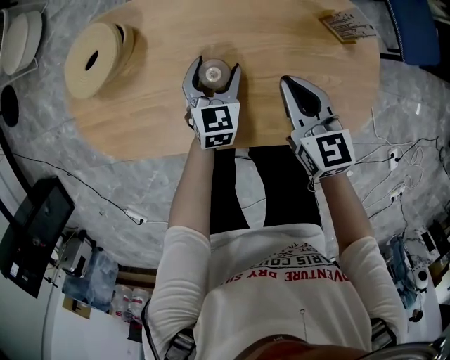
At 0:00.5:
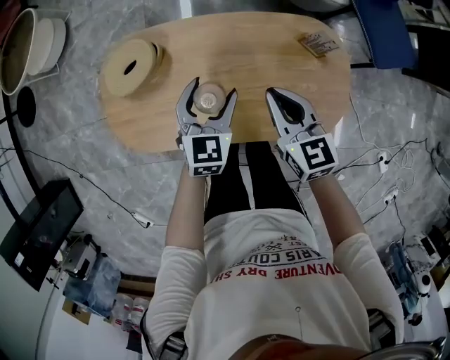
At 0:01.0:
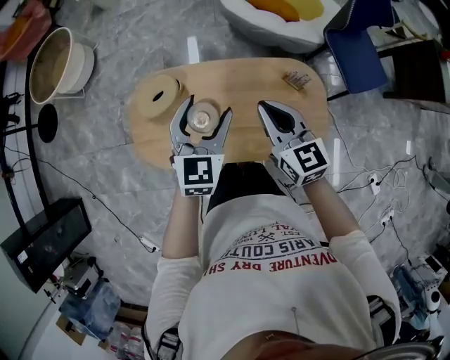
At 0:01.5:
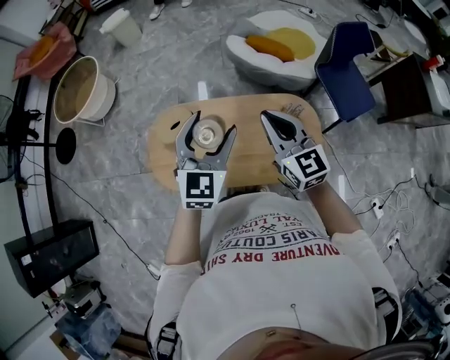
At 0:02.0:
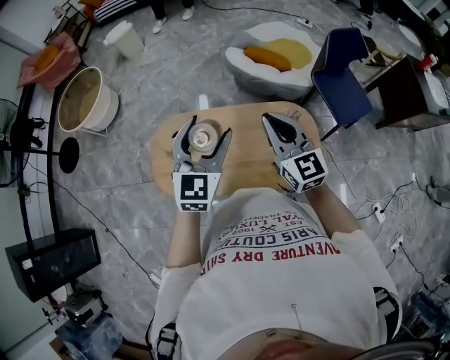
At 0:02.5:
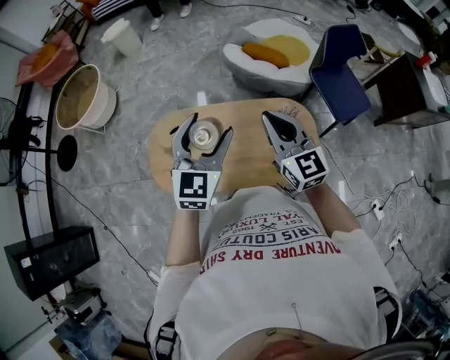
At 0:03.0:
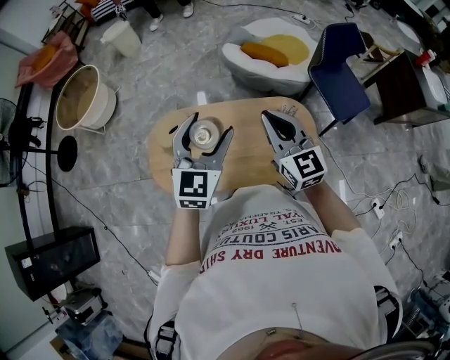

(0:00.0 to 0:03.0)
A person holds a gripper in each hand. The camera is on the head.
0:00.0 - 0:01.5: Both grippers move upward, about 50 cm. The left gripper turns by roughly 30 degrees, while the right gripper swivels some 30 degrees.
0:01.5 - 0:03.0: The grippers make only small movements.

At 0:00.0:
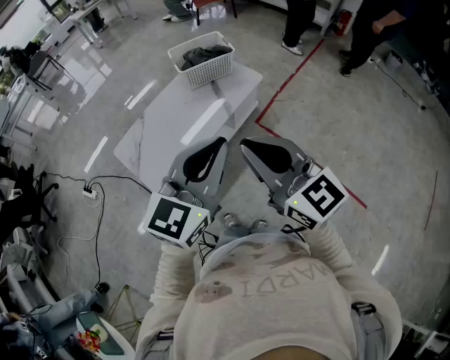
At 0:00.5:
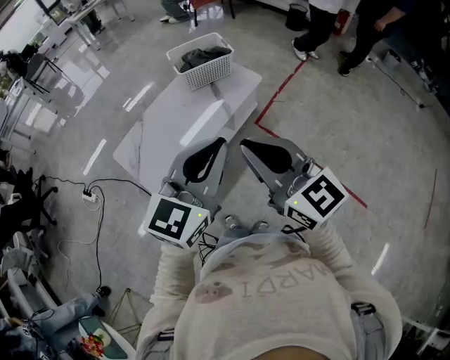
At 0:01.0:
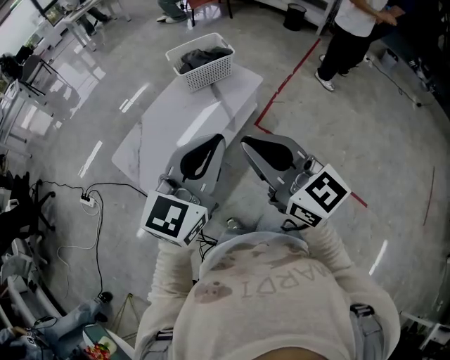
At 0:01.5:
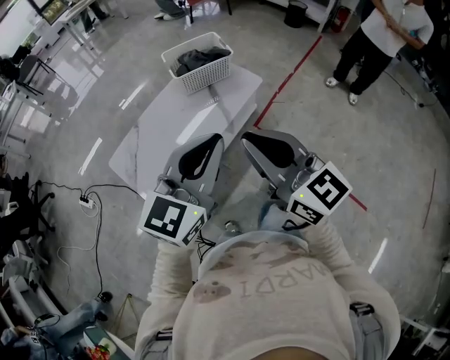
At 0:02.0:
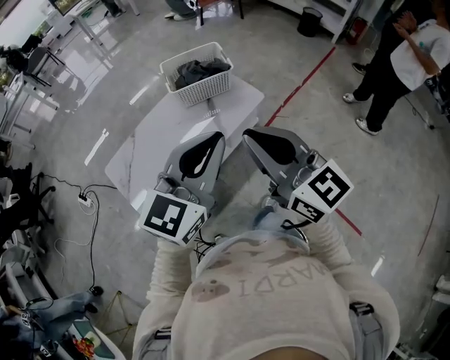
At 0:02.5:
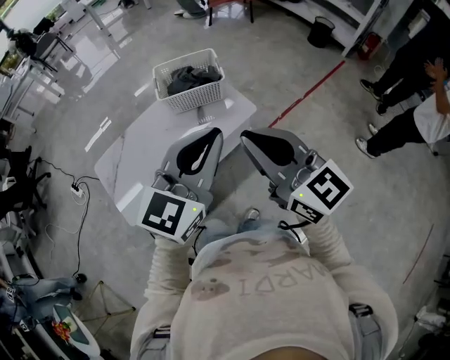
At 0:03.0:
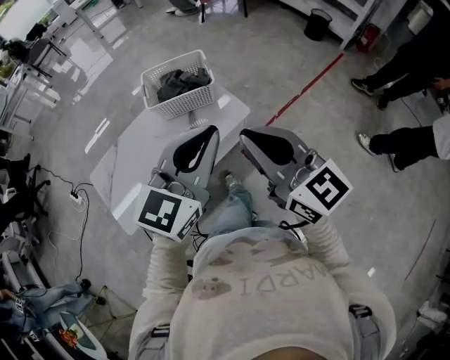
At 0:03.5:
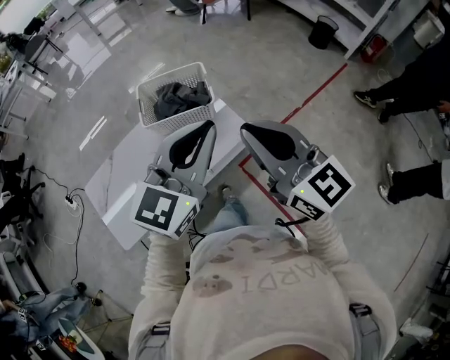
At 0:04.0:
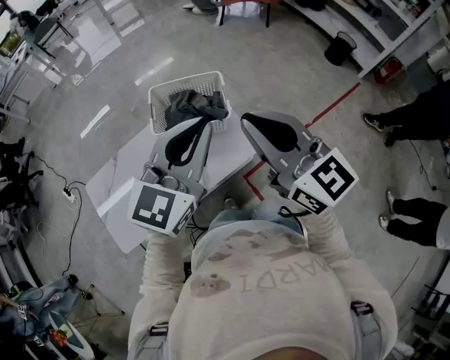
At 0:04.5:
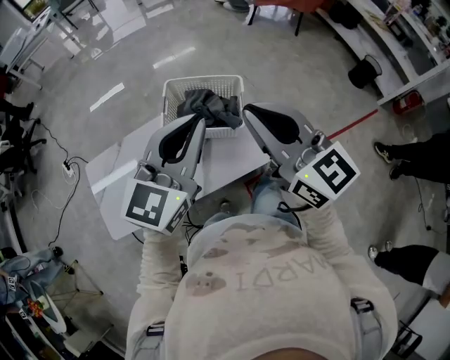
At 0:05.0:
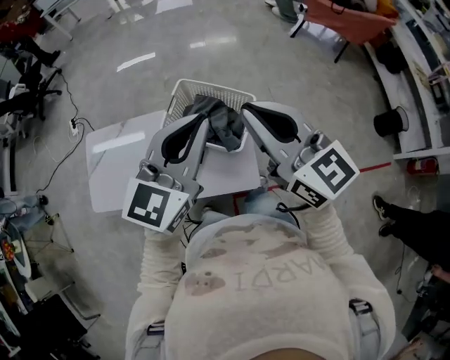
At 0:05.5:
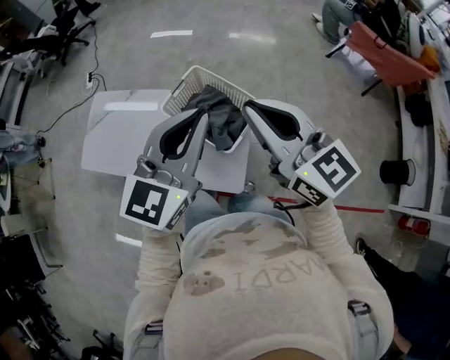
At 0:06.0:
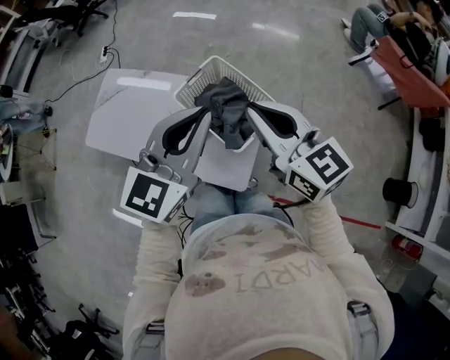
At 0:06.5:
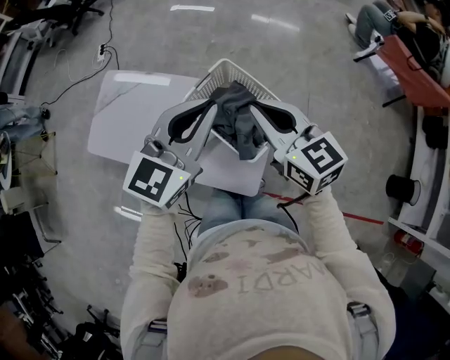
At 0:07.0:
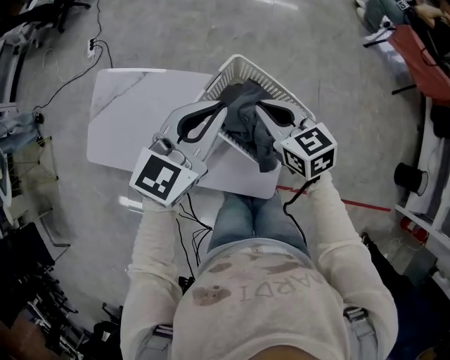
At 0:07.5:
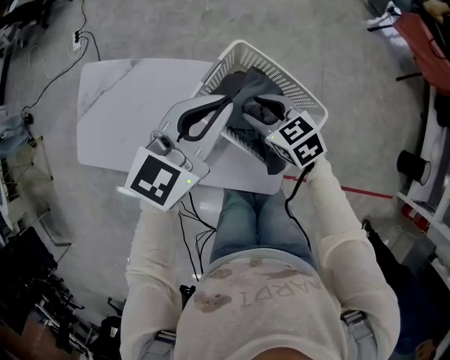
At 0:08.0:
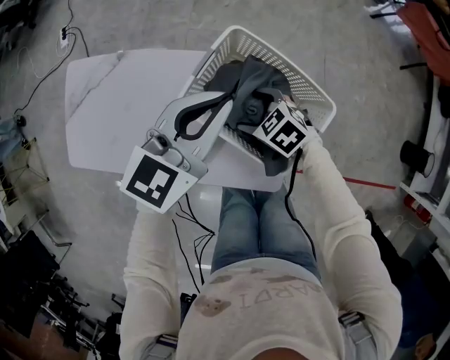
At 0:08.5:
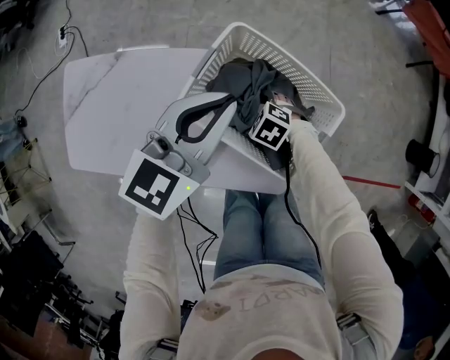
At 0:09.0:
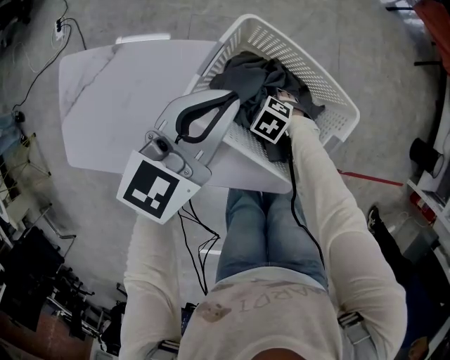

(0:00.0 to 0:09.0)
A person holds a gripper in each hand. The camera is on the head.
0:00.0 - 0:02.0: The left gripper goes about 20 cm forward. Meanwhile the right gripper shifts some 20 cm forward and to the right.
0:02.0 - 0:04.5: Both grippers travel together forward, approximately 40 cm. The left gripper swivels about 30 degrees, while the right gripper swivels about 20 degrees.
0:04.5 - 0:07.0: The left gripper changes place by roughly 25 cm, and turns by approximately 30 degrees. Meanwhile the right gripper changes place by about 40 cm, and tips its fingers downward by roughly 30 degrees.
0:07.0 - 0:09.0: The right gripper shifts about 35 cm downward, angles its fingers downward, by some 40 degrees, and opens, while the left gripper heads downward, covering about 15 cm.

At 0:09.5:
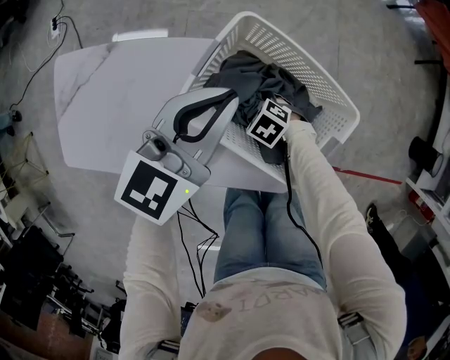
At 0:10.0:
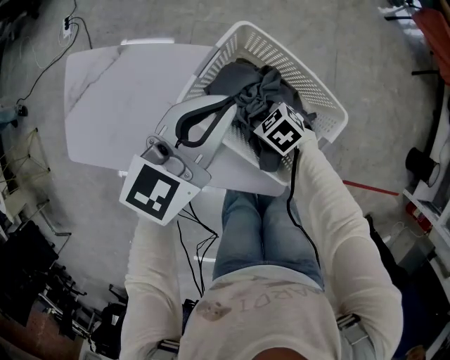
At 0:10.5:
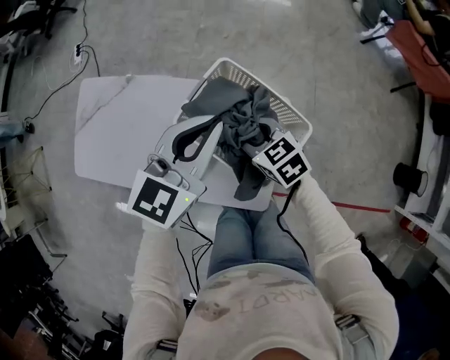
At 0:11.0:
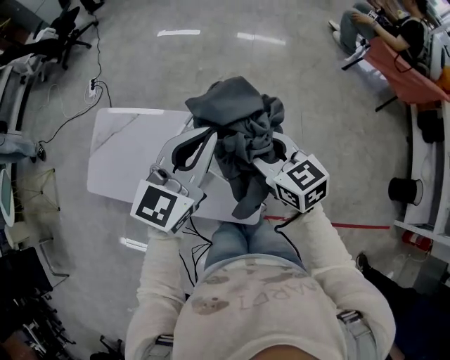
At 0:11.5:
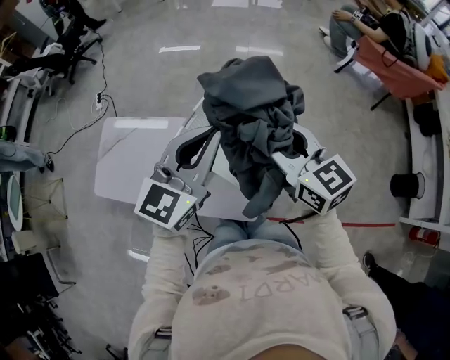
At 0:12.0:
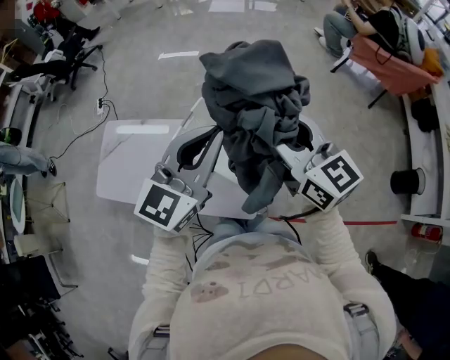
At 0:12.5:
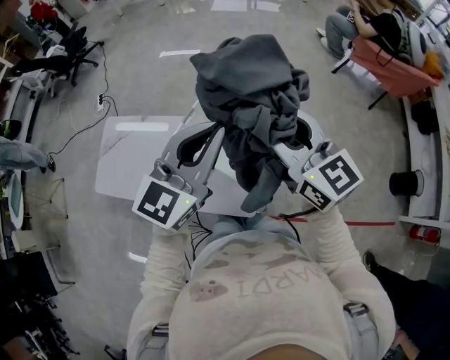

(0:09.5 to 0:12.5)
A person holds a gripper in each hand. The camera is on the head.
0:09.5 - 0:11.0: The left gripper travels upward by approximately 20 cm. The right gripper travels upward by some 40 cm, and tips its fingers upward by roughly 50 degrees.
0:11.0 - 0:12.5: The left gripper heads upward, backward and to the right, covering about 15 cm, while the right gripper shifts approximately 20 cm upward and to the right, and changes its angle by about 30 degrees.

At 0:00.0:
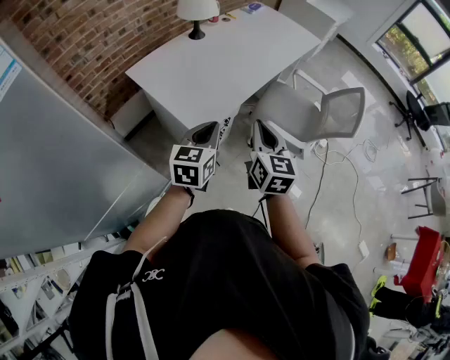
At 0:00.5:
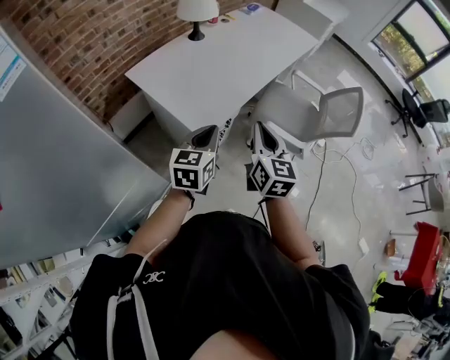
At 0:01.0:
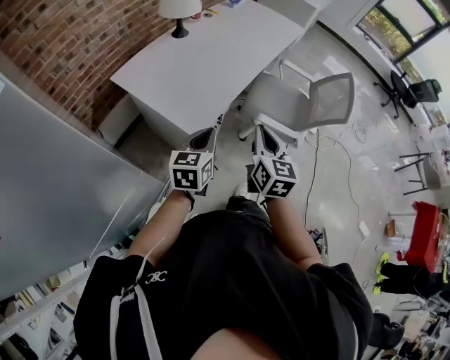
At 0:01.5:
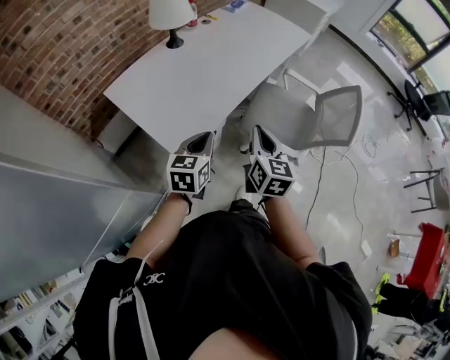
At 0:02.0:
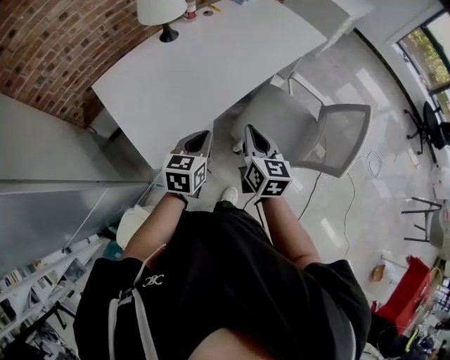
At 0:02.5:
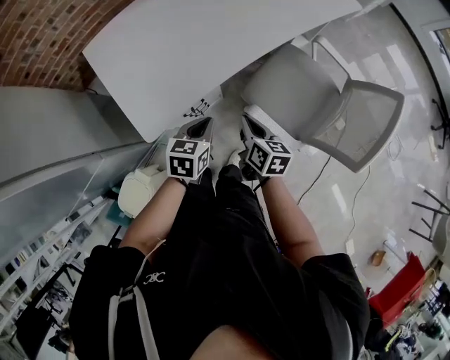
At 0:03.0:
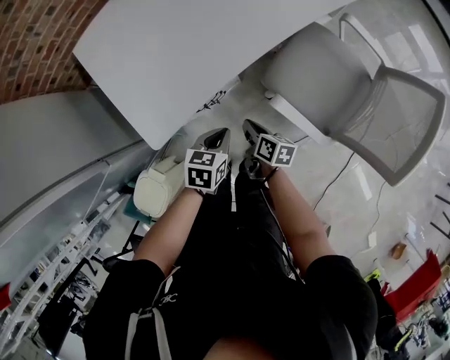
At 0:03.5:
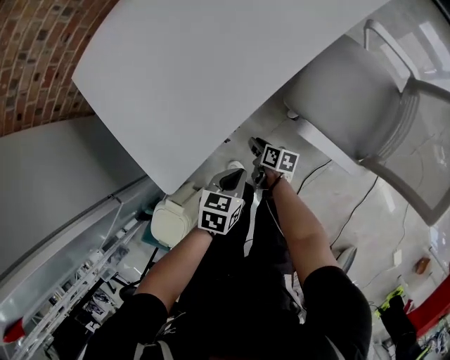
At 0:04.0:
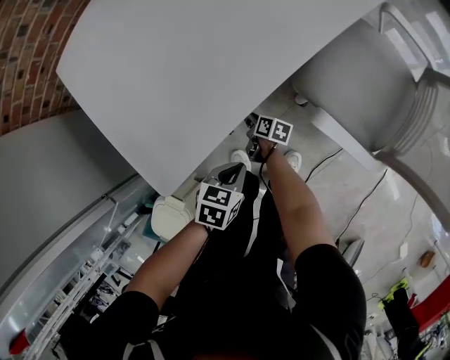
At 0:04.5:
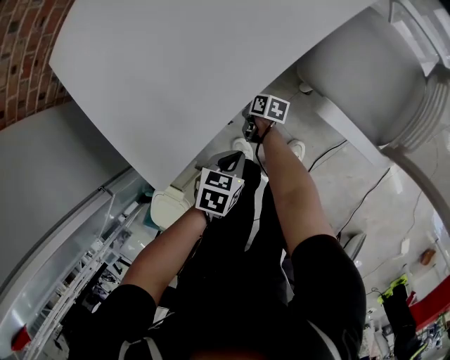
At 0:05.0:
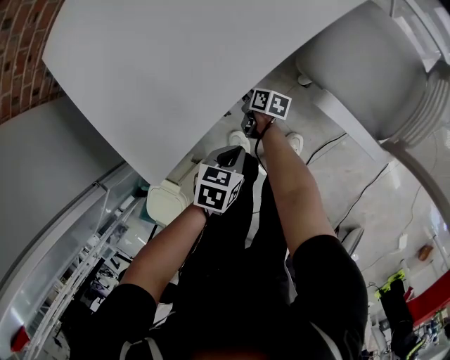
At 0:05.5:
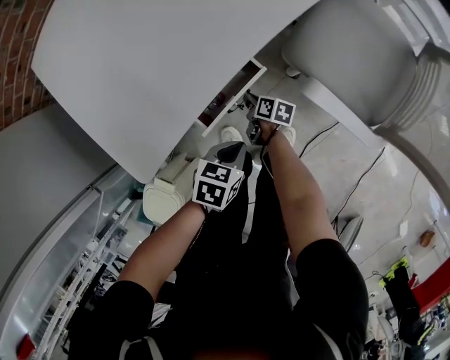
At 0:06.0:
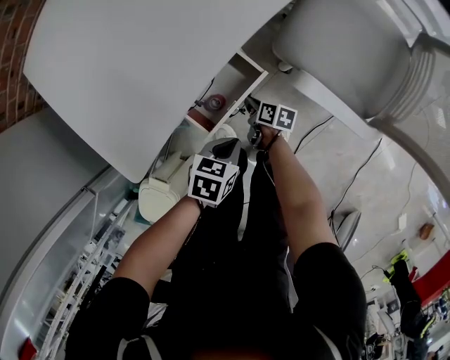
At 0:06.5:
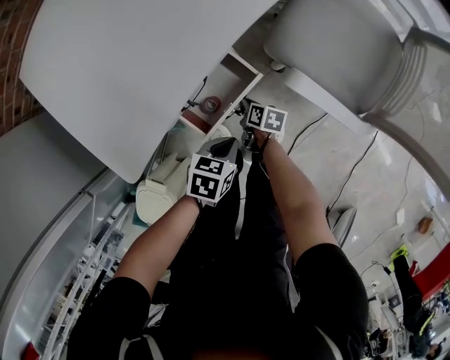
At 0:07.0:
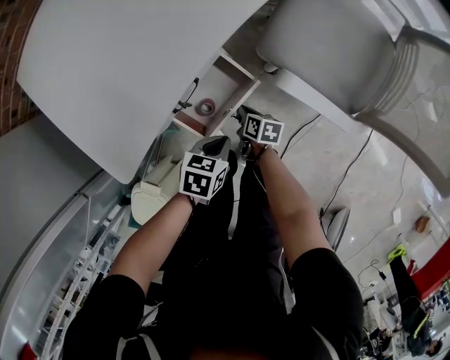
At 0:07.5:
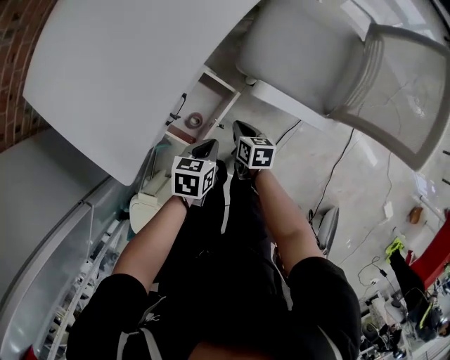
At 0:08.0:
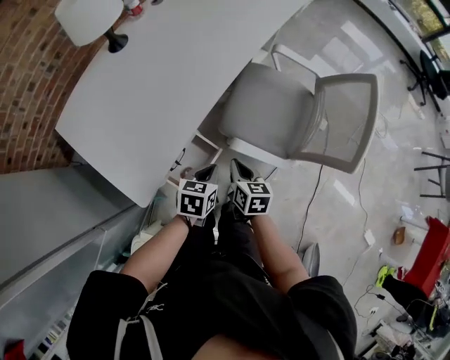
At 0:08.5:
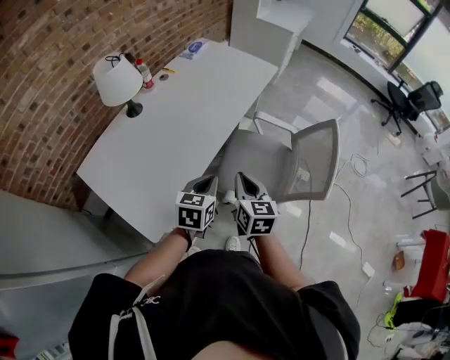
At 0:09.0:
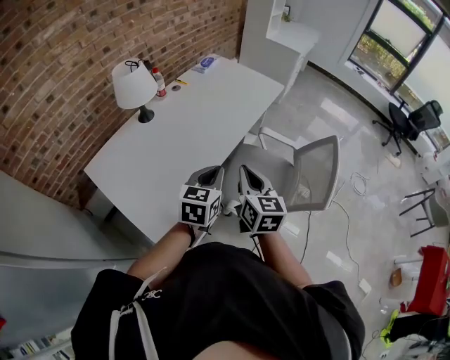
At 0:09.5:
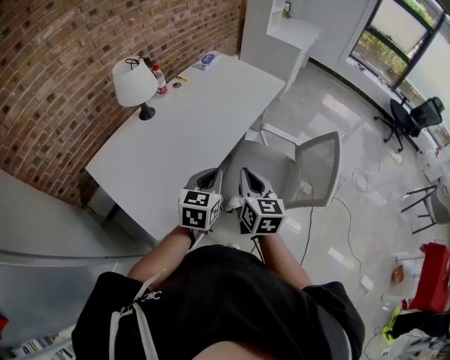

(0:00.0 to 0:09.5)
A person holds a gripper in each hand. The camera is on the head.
0:00.0 - 0:02.0: The two grippers go some 25 cm forward and to the right.
0:02.0 - 0:04.0: The left gripper travels downward by roughly 35 cm, and tips its fingers downward by about 30 degrees. The right gripper is displaced downward by approximately 60 cm, and rotates about 60 degrees.
0:04.0 - 0:05.5: The grippers move only a little.
0:05.5 - 0:07.5: The right gripper shifts about 15 cm upward and to the right, and changes its angle by approximately 20 degrees. Meanwhile the left gripper ends up about 5 cm from where it was.
0:07.5 - 0:09.5: Both grippers travel together upward, about 50 cm. The left gripper points its fingers about 40 degrees further upward. The right gripper tips its fingers upward by some 30 degrees.

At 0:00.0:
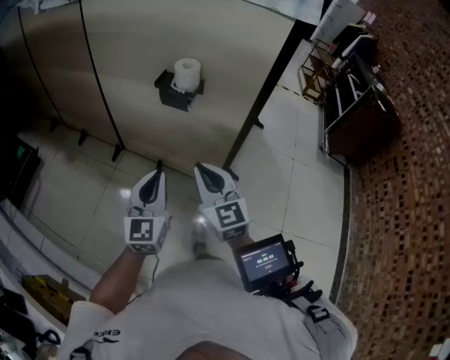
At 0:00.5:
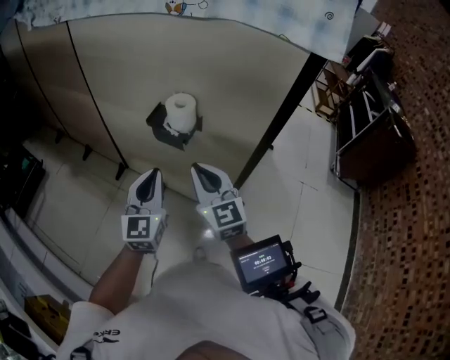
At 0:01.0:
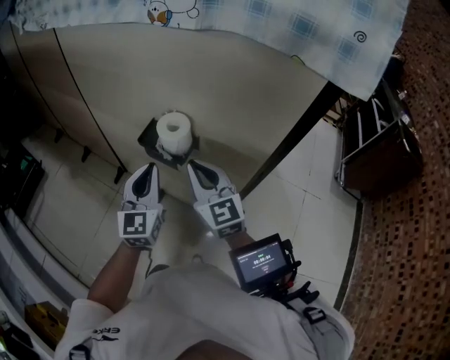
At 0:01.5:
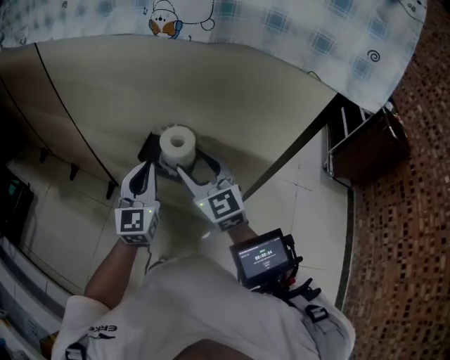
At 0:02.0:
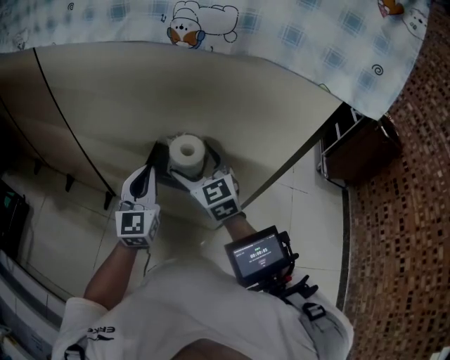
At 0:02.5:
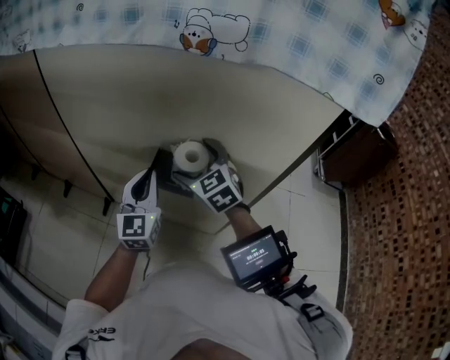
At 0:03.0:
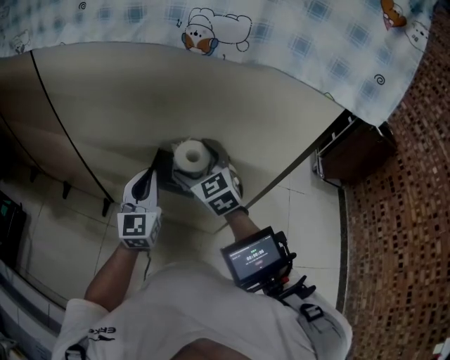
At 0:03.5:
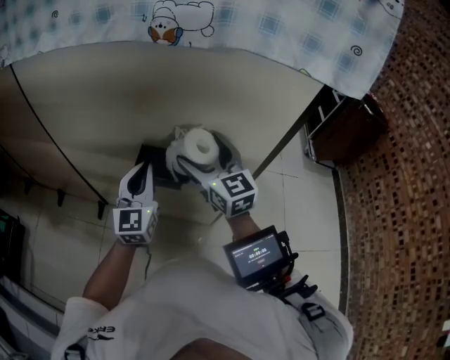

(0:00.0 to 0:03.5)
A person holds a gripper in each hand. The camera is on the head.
0:00.0 - 0:02.0: Both grippers travel together forward, approximately 40 cm. The right gripper opens up.
0:02.0 - 0:03.5: The right gripper changes place by approximately 5 cm.
